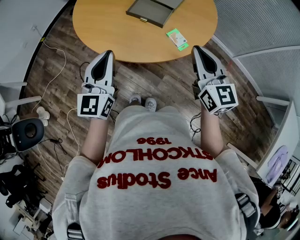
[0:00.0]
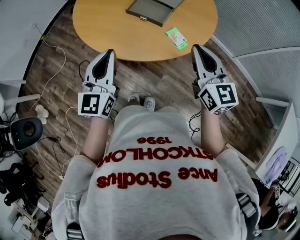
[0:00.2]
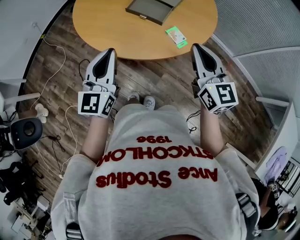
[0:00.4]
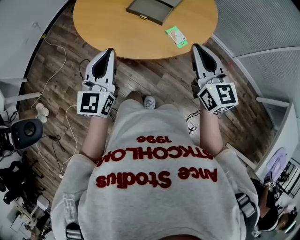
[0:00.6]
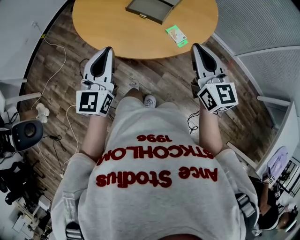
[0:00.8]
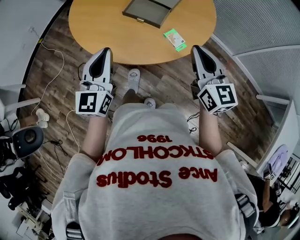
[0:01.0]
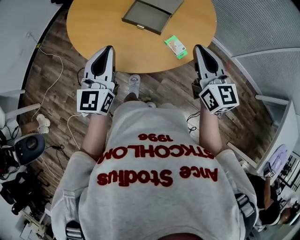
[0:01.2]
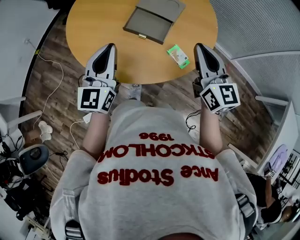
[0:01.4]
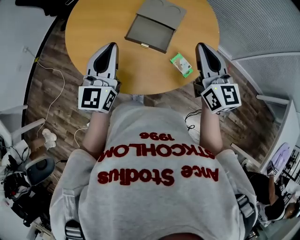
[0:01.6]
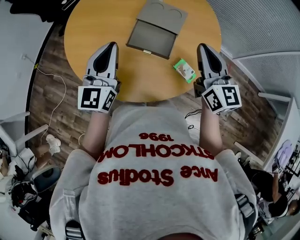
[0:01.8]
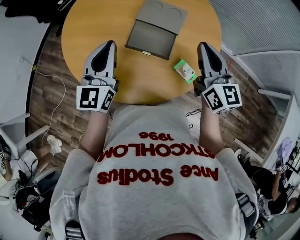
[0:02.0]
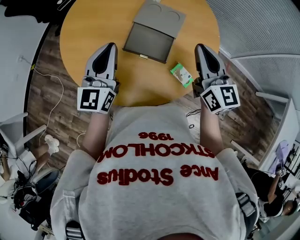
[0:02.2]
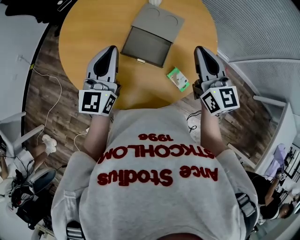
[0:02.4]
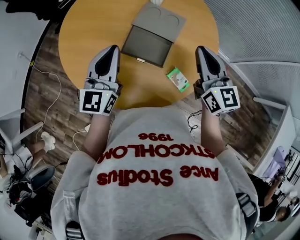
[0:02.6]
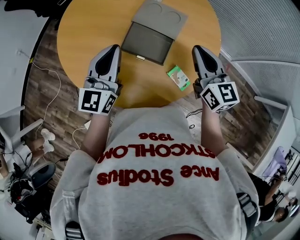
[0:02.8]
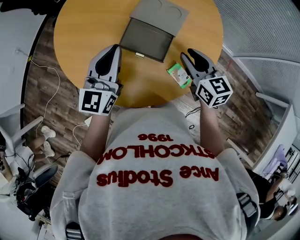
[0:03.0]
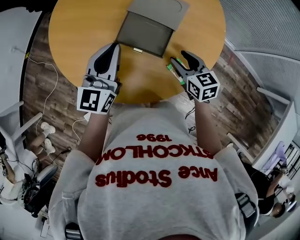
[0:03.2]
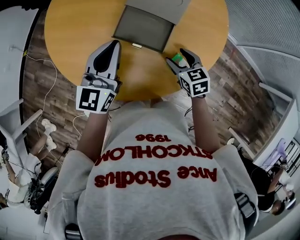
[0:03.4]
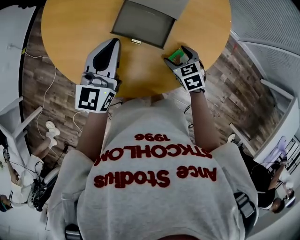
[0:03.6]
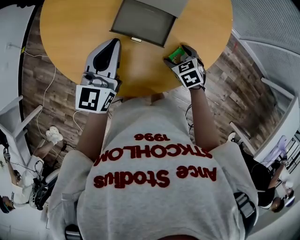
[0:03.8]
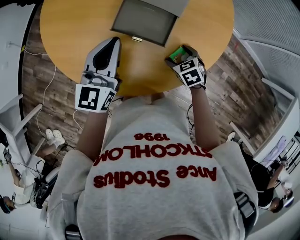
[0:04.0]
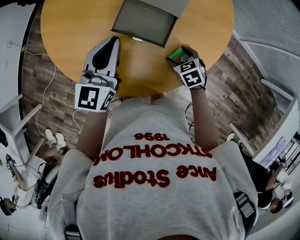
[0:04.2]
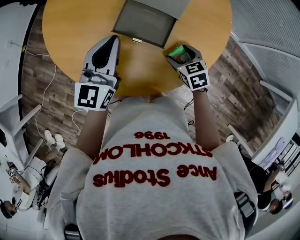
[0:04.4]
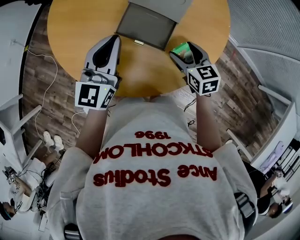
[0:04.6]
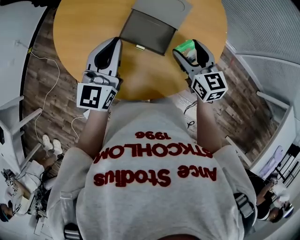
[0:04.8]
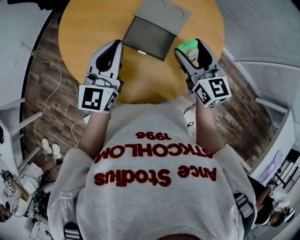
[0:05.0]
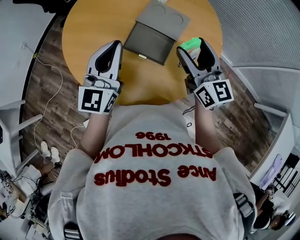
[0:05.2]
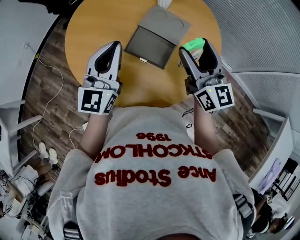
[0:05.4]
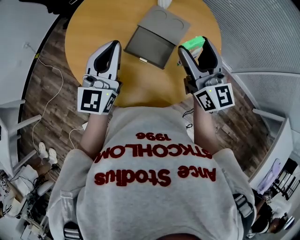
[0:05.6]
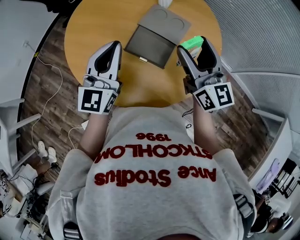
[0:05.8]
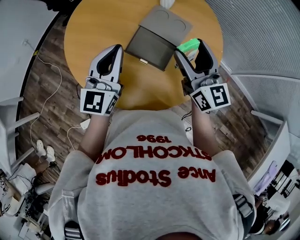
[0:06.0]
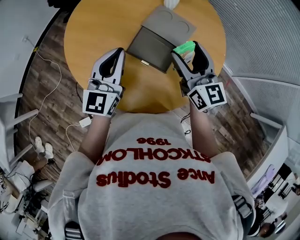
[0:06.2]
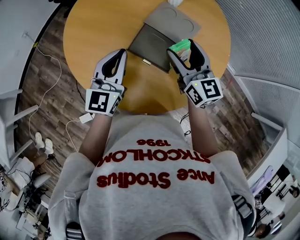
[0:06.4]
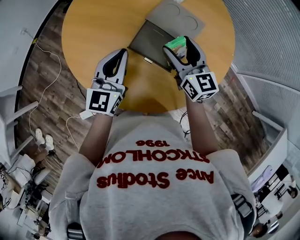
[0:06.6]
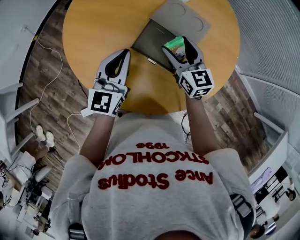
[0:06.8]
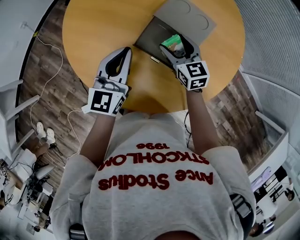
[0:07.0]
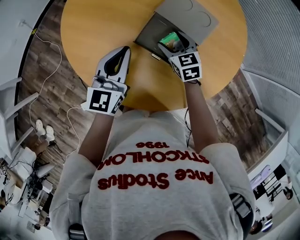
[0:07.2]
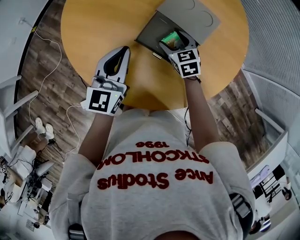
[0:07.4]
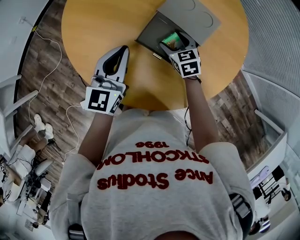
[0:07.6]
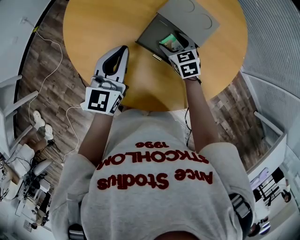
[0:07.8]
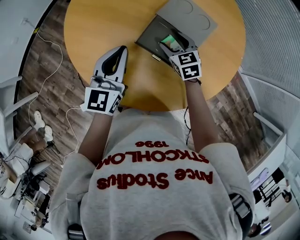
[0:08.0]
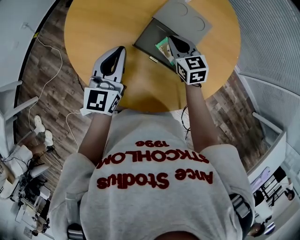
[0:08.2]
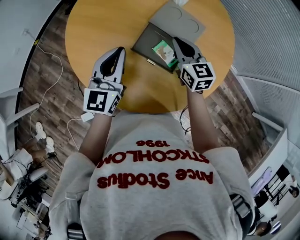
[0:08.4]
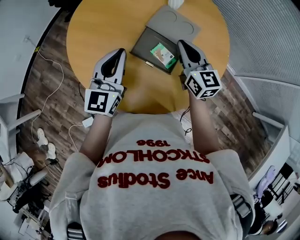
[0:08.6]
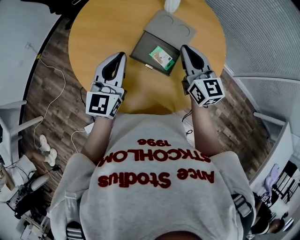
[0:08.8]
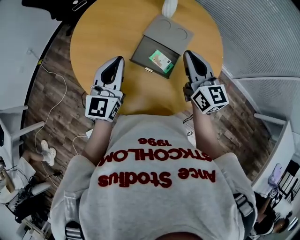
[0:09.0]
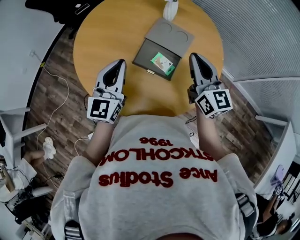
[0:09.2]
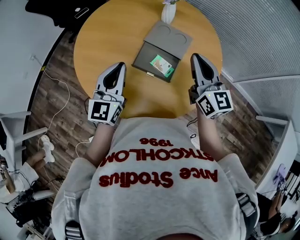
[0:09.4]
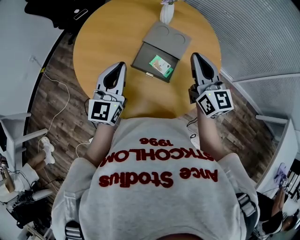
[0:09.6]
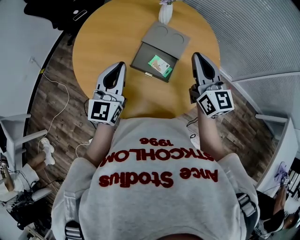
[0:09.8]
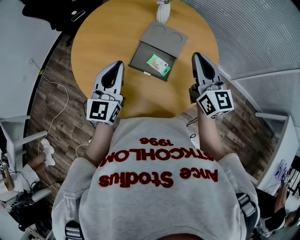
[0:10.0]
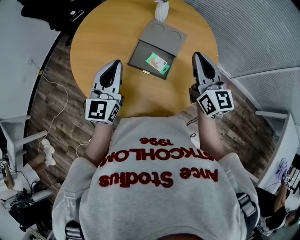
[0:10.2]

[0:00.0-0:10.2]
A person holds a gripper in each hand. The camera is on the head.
0:00.0 to 0:01.4: Both grippers move forward, approximately 10 cm.
0:01.4 to 0:03.0: The right gripper heads downward and forward, covering approximately 15 cm, and rotates some 20 degrees, while the left gripper moves forward, some 10 cm.
0:03.0 to 0:04.4: The right gripper goes approximately 15 cm downward, turns by approximately 30 degrees, and opens its fingers.
0:04.4 to 0:05.8: The right gripper heads upward, covering some 30 cm, and angles its fingers upward, by approximately 60 degrees; the left gripper goes about 10 cm upward.
0:05.8 to 0:07.2: The left gripper goes some 15 cm downward. The right gripper goes approximately 30 cm downward, and angles its fingers downward, by roughly 40 degrees.
0:07.2 to 0:08.8: The right gripper is displaced upward by about 20 cm, tips its fingers upward by roughly 30 degrees, and closes up. The left gripper heads upward, covering approximately 10 cm.
0:08.8 to 0:10.2: The right gripper heads upward and to the right, covering about 10 cm.

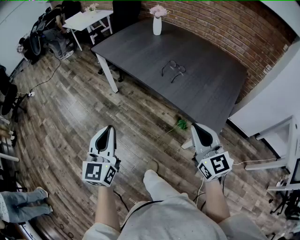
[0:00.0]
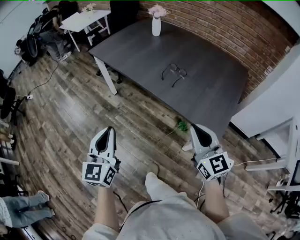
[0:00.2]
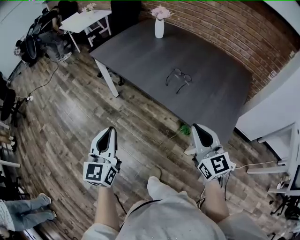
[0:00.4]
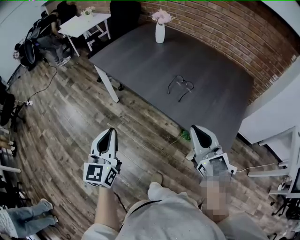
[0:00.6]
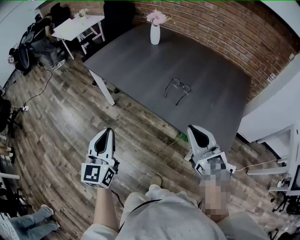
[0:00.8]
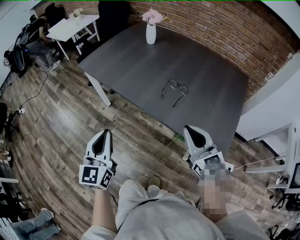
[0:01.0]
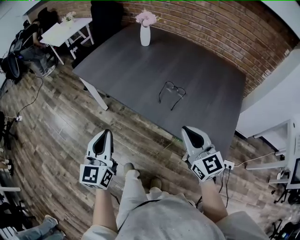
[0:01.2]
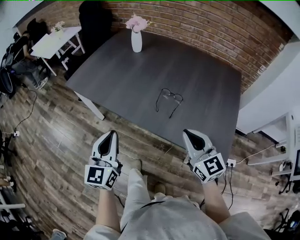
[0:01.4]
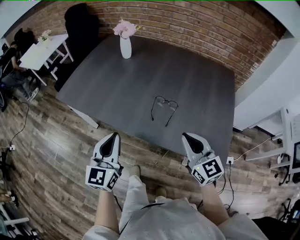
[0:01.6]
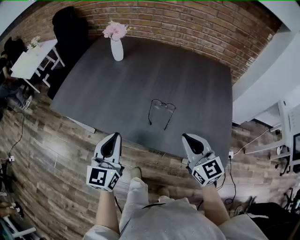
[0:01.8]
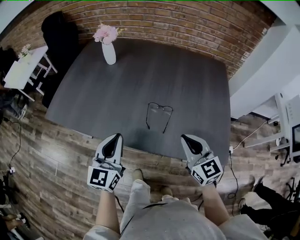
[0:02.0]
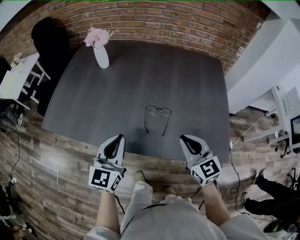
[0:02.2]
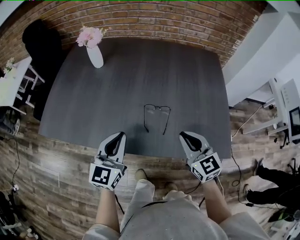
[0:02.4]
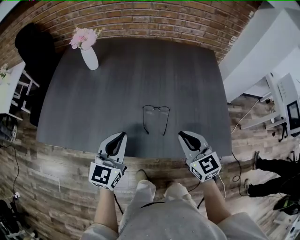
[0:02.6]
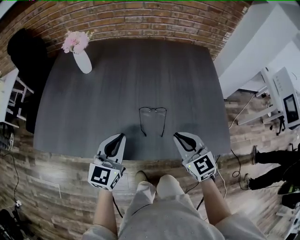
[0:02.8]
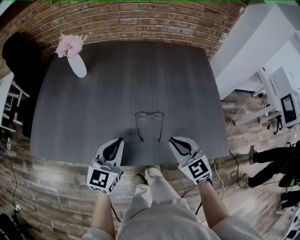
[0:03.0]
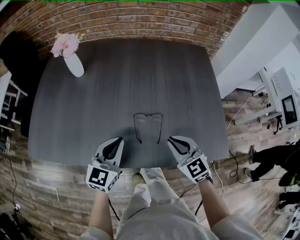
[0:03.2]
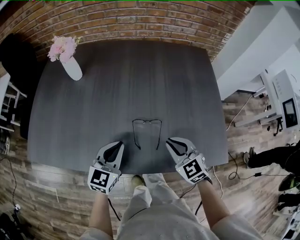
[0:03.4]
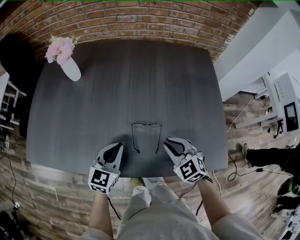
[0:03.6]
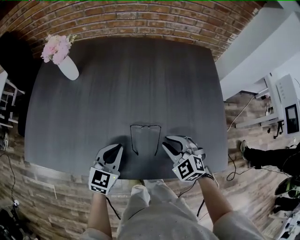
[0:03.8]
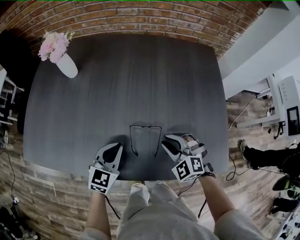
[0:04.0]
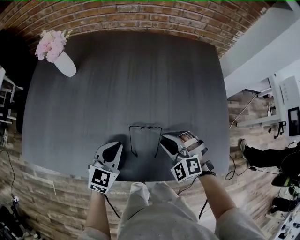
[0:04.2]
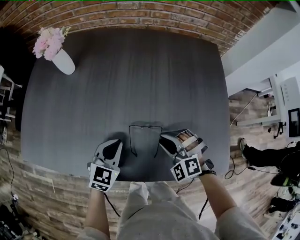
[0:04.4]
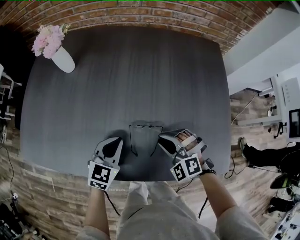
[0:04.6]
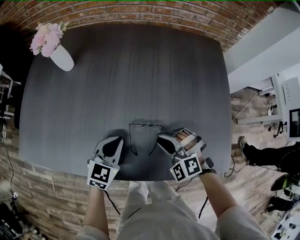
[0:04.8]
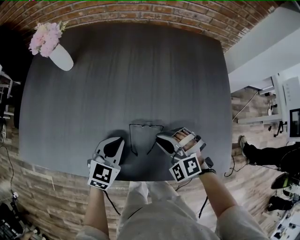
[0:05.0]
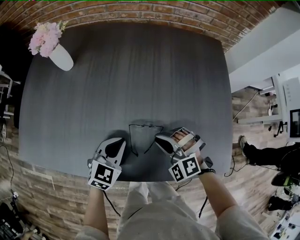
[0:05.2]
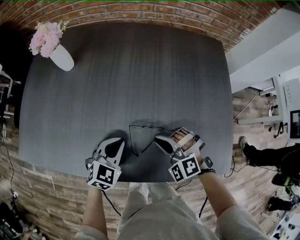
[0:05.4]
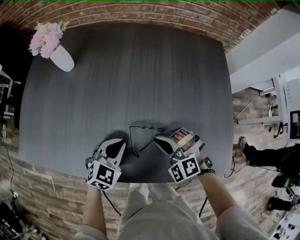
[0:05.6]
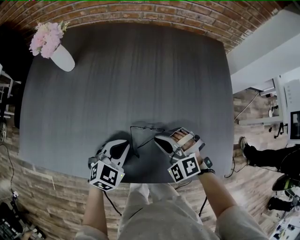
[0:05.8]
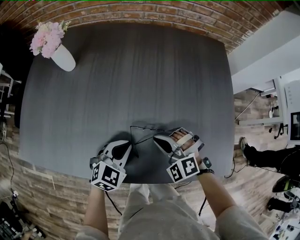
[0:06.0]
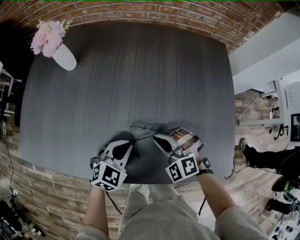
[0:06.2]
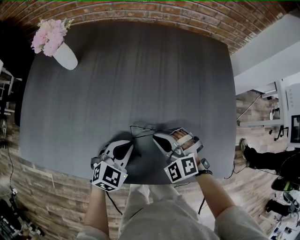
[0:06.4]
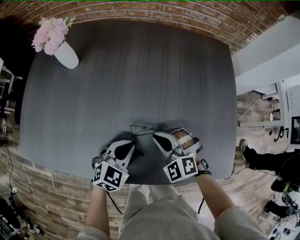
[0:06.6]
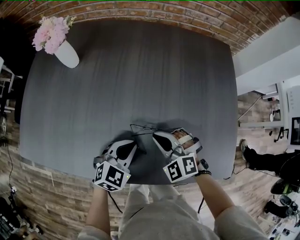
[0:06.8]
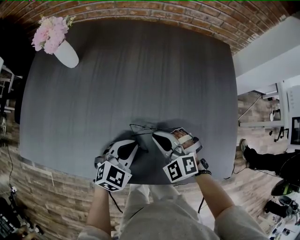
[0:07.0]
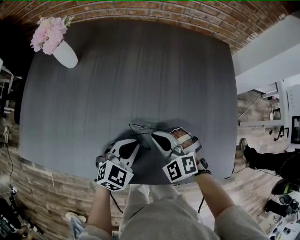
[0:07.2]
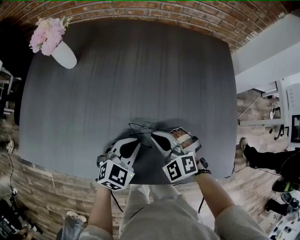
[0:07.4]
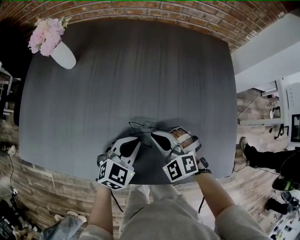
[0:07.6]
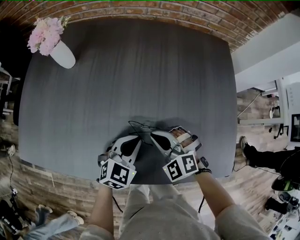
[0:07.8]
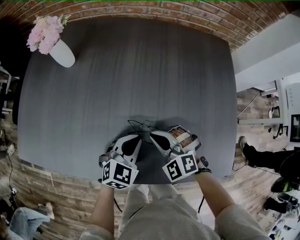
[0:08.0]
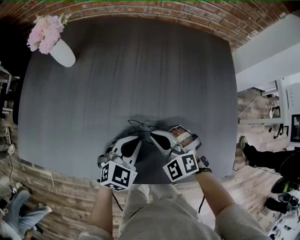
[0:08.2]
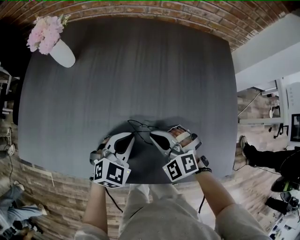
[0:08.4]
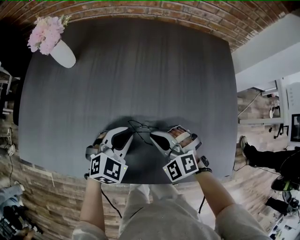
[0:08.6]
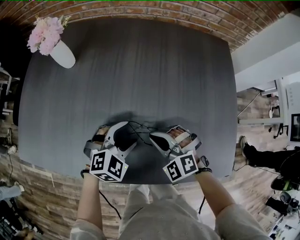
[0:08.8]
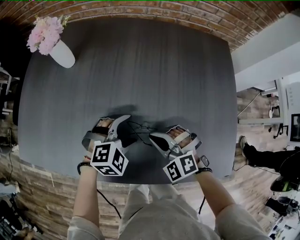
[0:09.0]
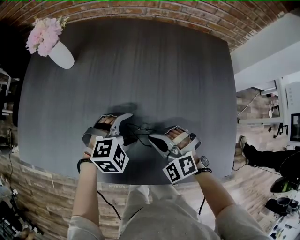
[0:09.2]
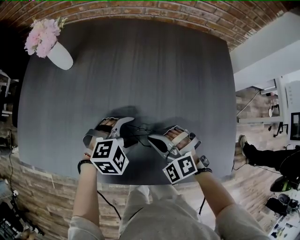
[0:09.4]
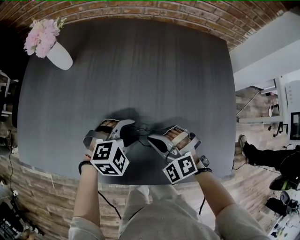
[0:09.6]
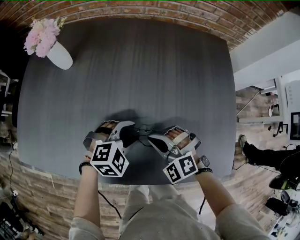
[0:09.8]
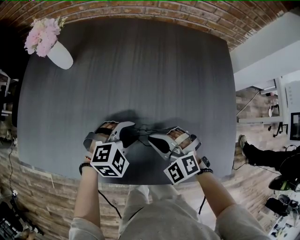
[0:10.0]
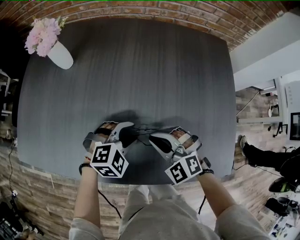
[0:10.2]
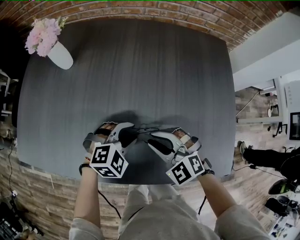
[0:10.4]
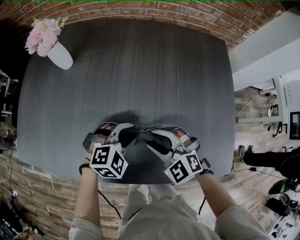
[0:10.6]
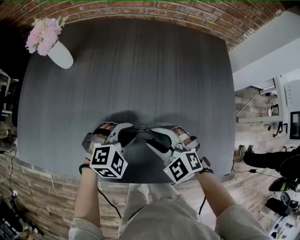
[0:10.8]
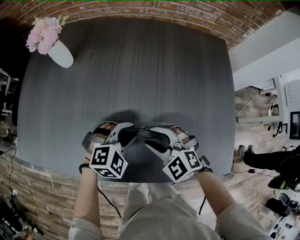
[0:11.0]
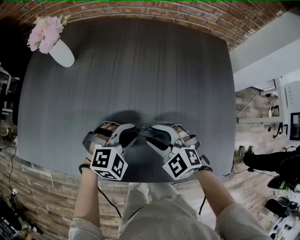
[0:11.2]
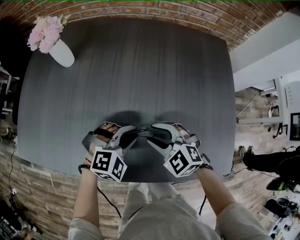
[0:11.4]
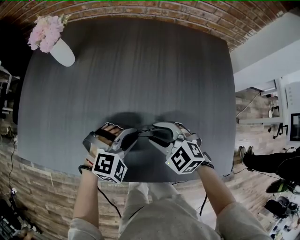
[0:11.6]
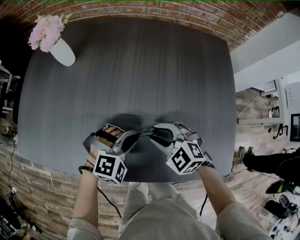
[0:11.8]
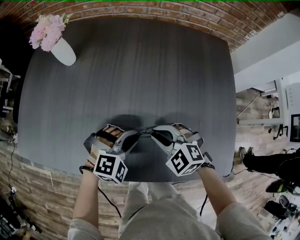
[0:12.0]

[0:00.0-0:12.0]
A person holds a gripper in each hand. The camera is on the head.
0:00.0 to 0:01.6: Both grippers move forward, roughly 30 cm. The left gripper changes its angle by some 20 degrees.
0:01.6 to 0:03.0: Both grippers travel together forward and downward, some 15 cm. The left gripper rotates roughly 30 degrees. The right gripper swivels approximately 20 degrees.
0:03.0 to 0:04.4: The grippers both shift downward and forward by approximately 15 cm. The right gripper rolls counterclockwise, seen from behind, by approximately 50 degrees. The left gripper changes its angle by about 20 degrees.
0:04.4 to 0:06.0: The right gripper closes up.
0:06.0 to 0:07.6: There are only small adjustments of the grippers.
0:07.6 to 0:09.0: The left gripper turns by some 30 degrees, and opens.
0:09.0 to 0:10.4: The left gripper closes up; the right gripper opens up.
0:10.4 to 0:12.0: The right gripper opens, then closes again.

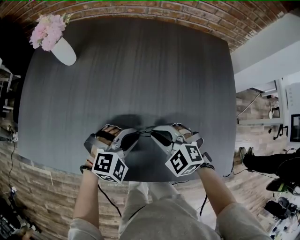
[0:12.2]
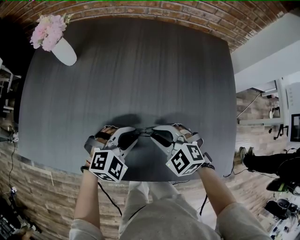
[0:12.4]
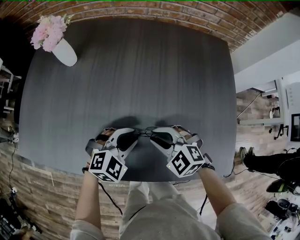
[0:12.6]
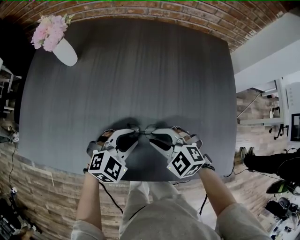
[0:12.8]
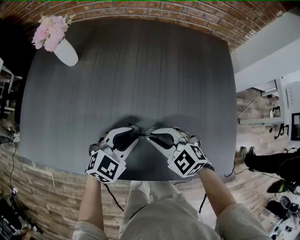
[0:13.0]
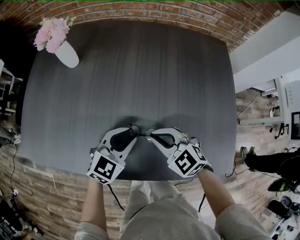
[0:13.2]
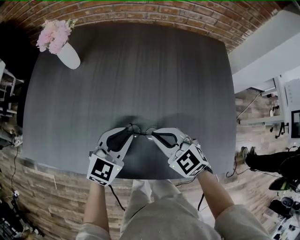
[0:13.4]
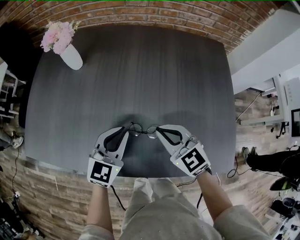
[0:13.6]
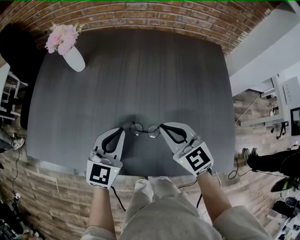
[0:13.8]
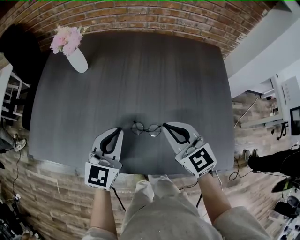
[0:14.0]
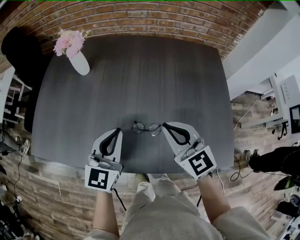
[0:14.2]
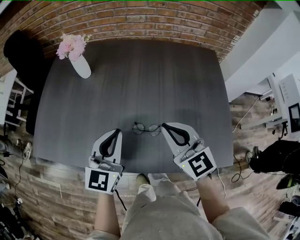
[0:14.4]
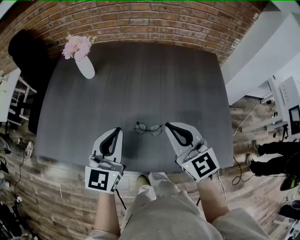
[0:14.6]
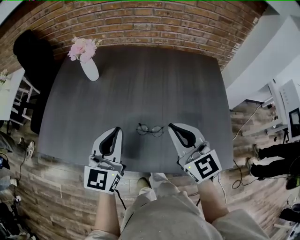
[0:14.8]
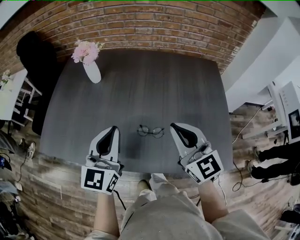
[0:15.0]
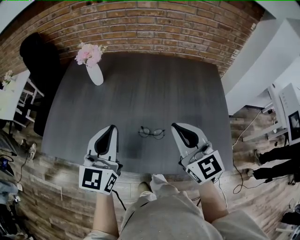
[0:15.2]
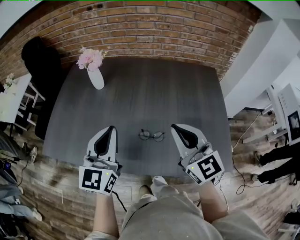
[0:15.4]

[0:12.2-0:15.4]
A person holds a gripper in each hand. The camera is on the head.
0:12.2 to 0:13.8: The left gripper is displaced upward and to the left by some 15 cm, and points its fingers some 30 degrees further upward; the right gripper is displaced upward by about 10 cm, and turns by roughly 40 degrees.
0:13.8 to 0:15.4: The two grippers go approximately 15 cm upward. The left gripper rotates some 20 degrees; the right gripper turns by approximately 20 degrees.
